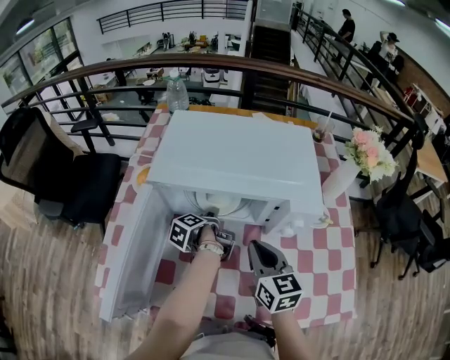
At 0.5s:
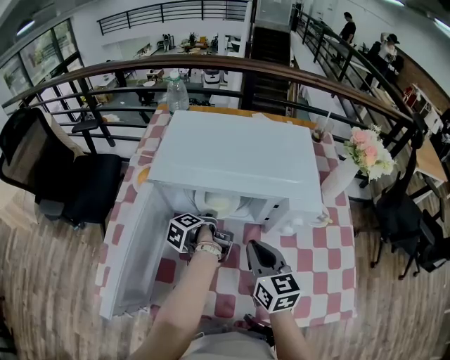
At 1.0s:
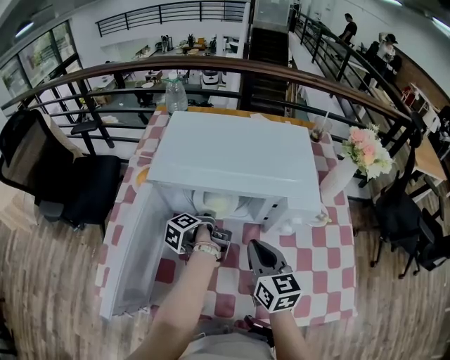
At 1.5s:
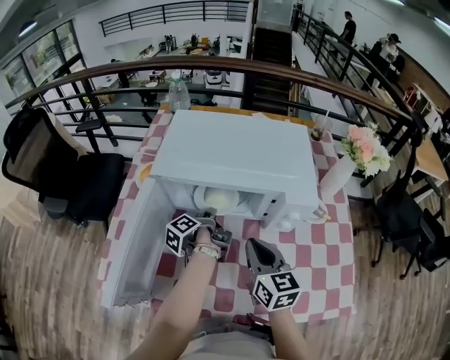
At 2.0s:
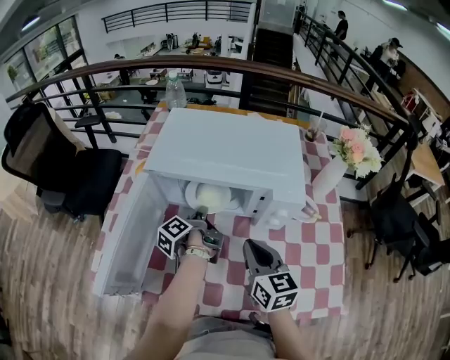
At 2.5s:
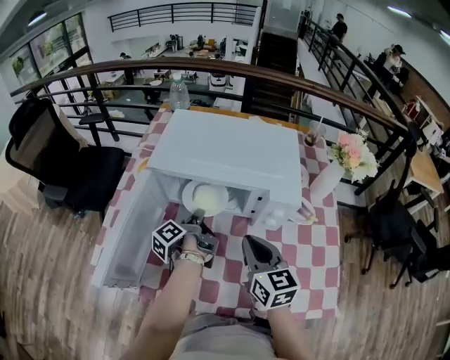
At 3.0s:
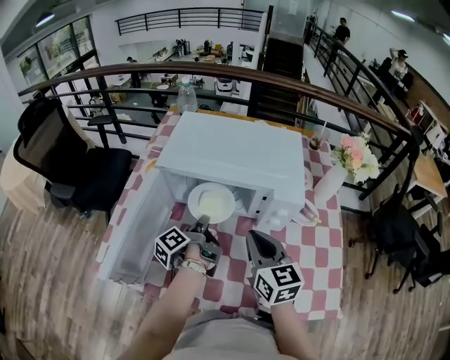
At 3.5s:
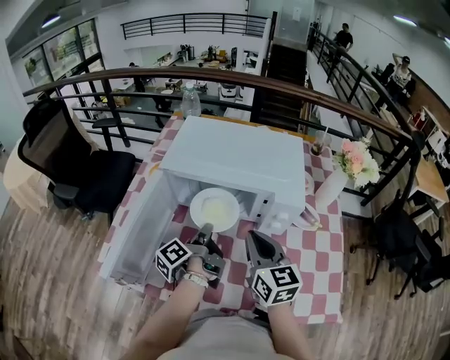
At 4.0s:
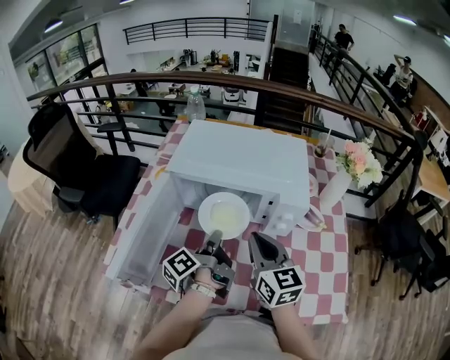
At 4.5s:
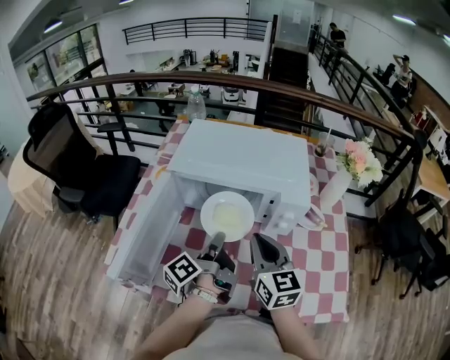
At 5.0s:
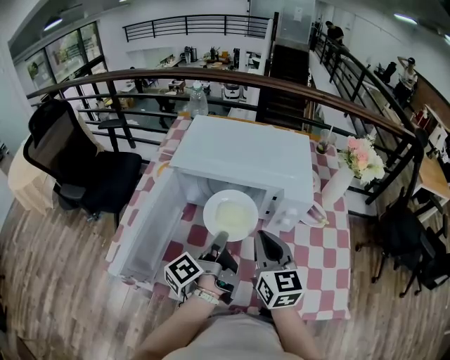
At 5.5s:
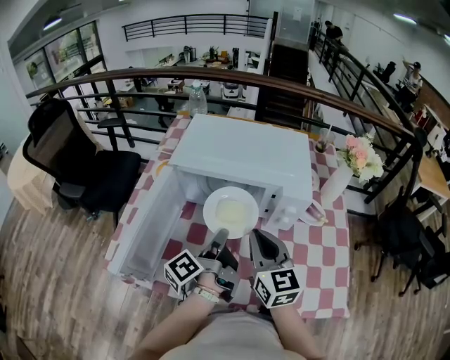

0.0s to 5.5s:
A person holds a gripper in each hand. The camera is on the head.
0.0s to 2.0s: The right gripper changes place by roughly 5 cm, while the left gripper heads upward, covering roughly 5 cm, and closes.
2.0s to 3.5s: The left gripper shifts some 10 cm backward and upward. The right gripper travels upward by some 5 cm.
3.5s to 5.5s: The left gripper shifts by approximately 5 cm.

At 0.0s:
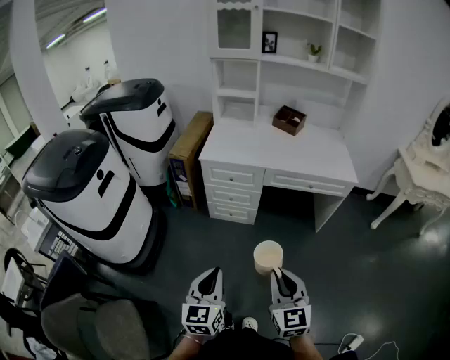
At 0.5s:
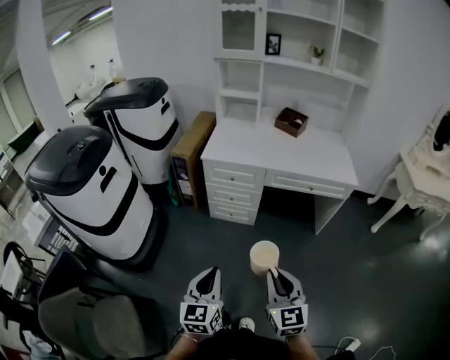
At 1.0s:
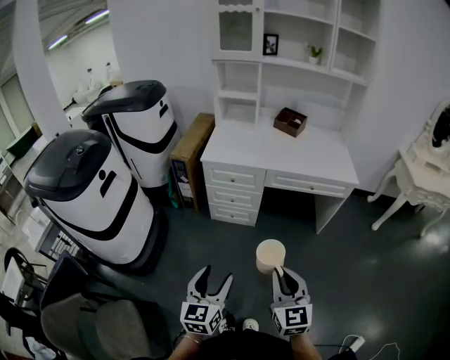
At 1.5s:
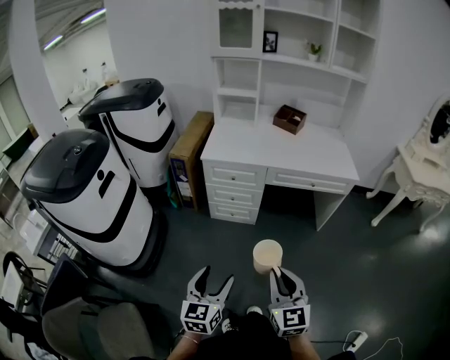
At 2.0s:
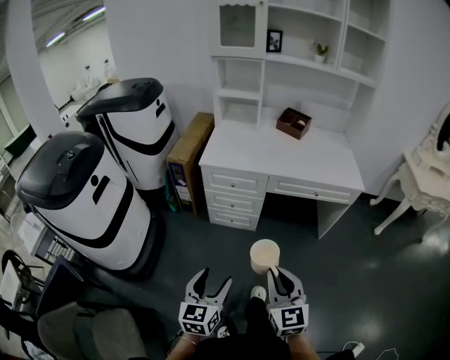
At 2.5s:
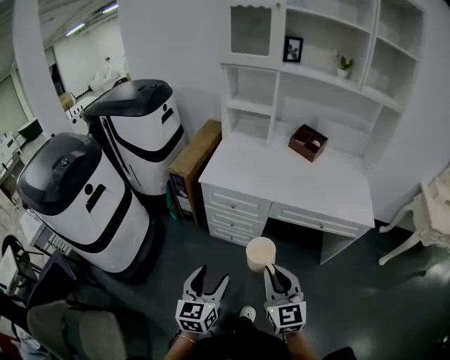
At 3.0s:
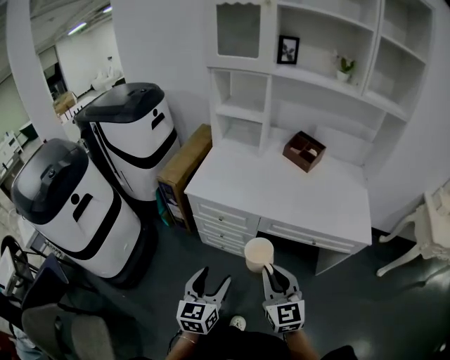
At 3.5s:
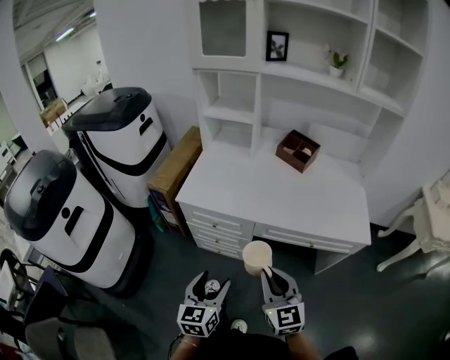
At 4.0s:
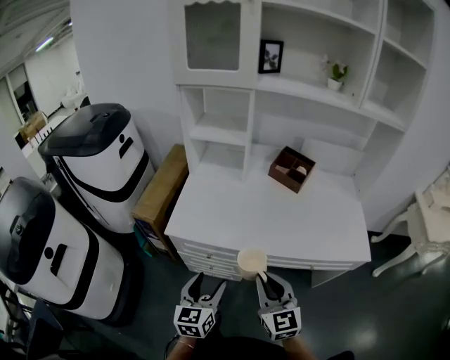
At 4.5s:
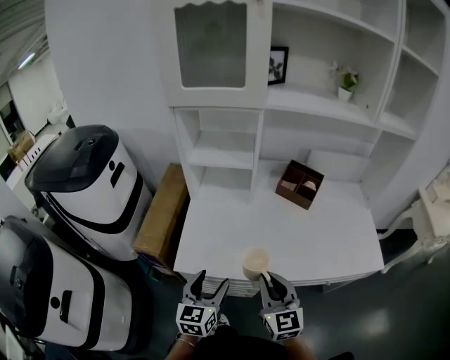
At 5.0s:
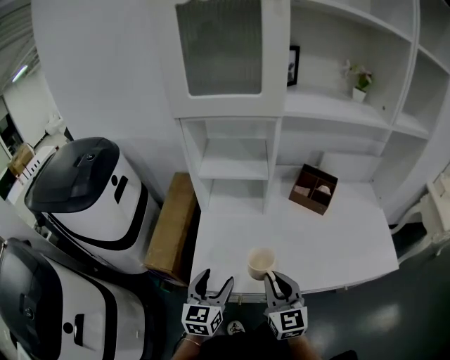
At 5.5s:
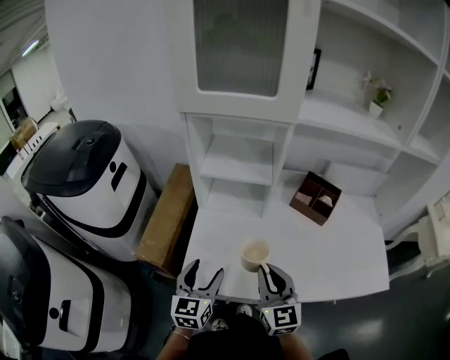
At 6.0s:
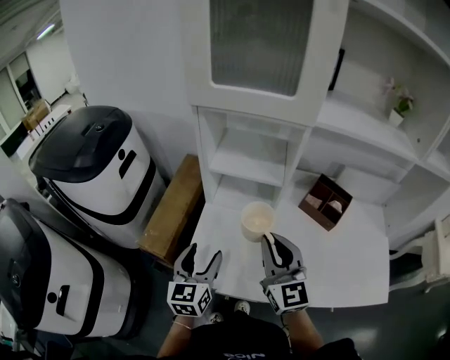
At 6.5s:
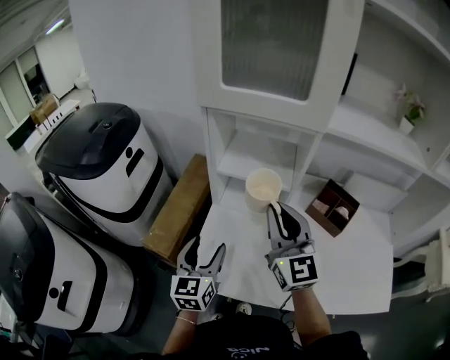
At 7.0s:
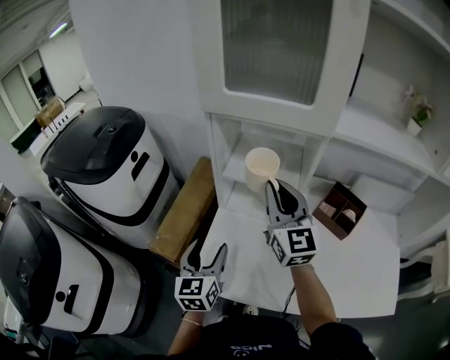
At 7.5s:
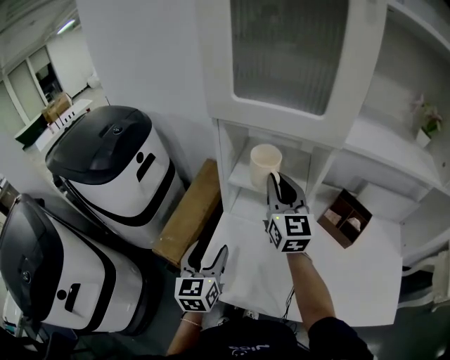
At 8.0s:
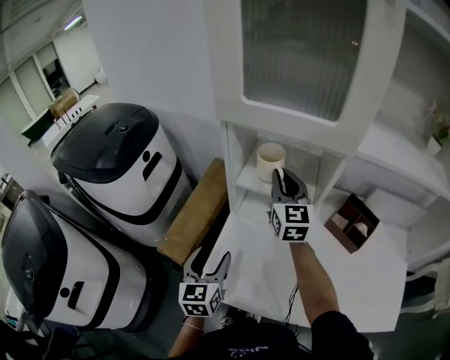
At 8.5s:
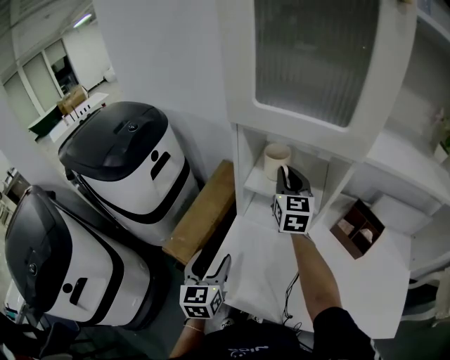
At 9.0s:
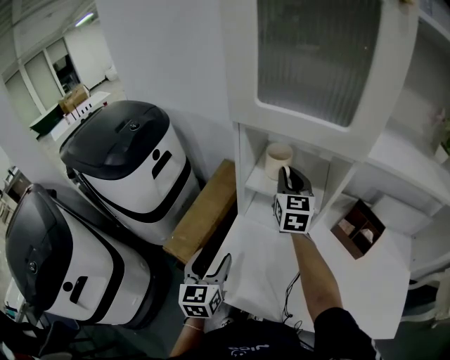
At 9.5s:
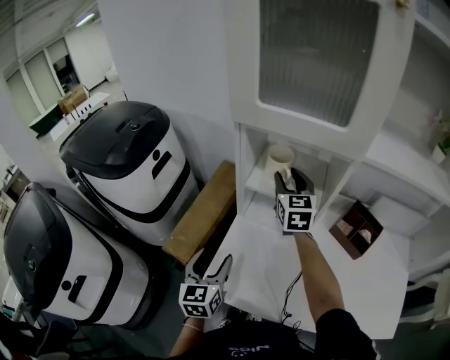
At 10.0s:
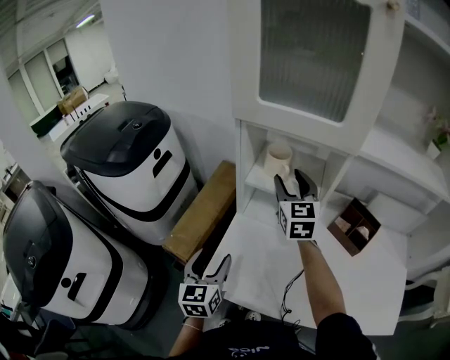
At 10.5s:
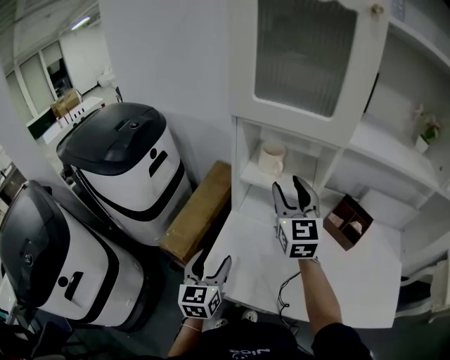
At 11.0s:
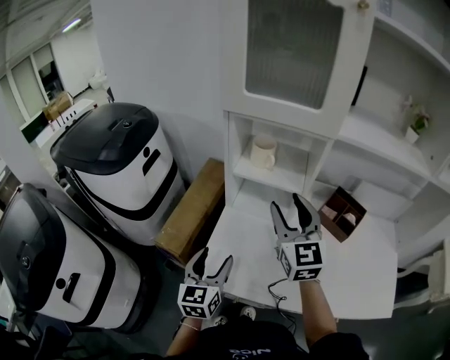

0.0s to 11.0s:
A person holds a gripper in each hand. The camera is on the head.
0.0s to 2.0s: The two grippers go roughly 5 cm forward. The left gripper opens up.
2.0s to 3.5s: Both grippers travel together forward and to the right, roughly 30 cm.
3.5s to 5.5s: Both grippers travel together forward, approximately 35 cm.
5.5s to 7.5s: The left gripper is displaced forward by about 10 cm. The right gripper shifts approximately 30 cm forward and upward.
7.5s to 9.0s: The right gripper goes roughly 10 cm forward.
9.0s to 11.0s: The right gripper heads backward, covering about 20 cm, and opens. The left gripper heads backward, covering some 5 cm.

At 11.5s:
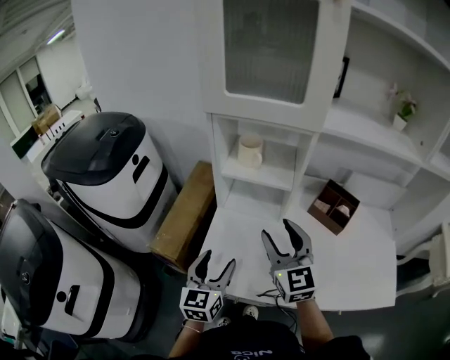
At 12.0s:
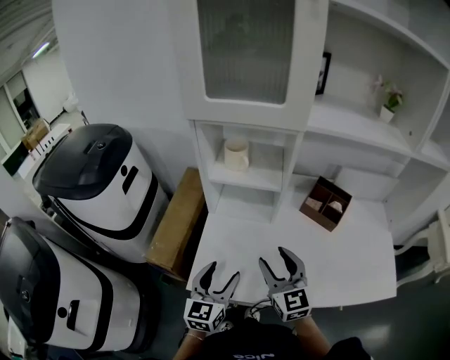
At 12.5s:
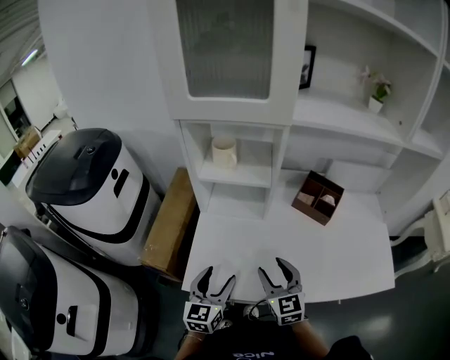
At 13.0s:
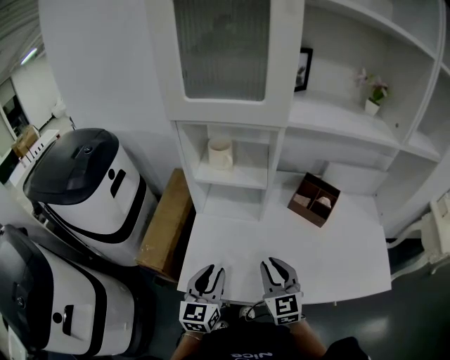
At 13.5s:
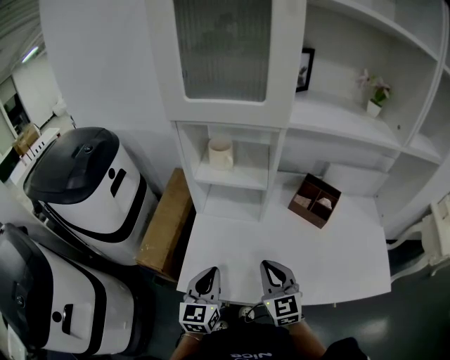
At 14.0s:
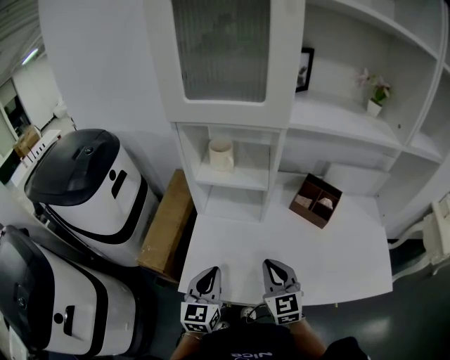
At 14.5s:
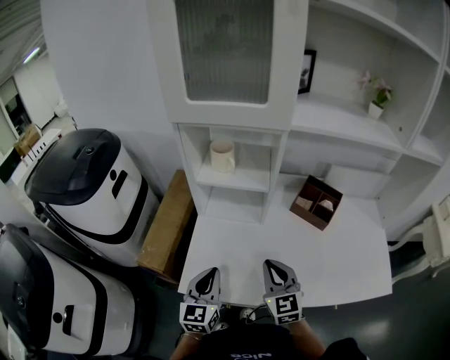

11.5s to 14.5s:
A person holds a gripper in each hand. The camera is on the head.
11.5s to 13.0s: The right gripper travels downward, backward and to the right by roughly 15 cm, and closes; the left gripper closes up.
13.0s to 14.5s: The right gripper closes its fingers, while the left gripper closes its fingers.

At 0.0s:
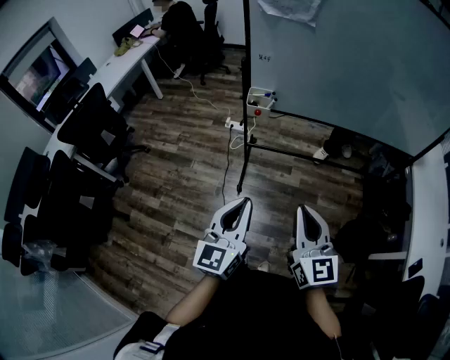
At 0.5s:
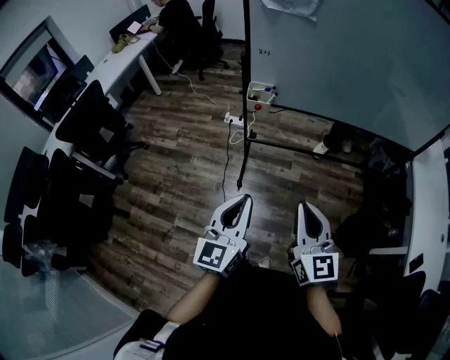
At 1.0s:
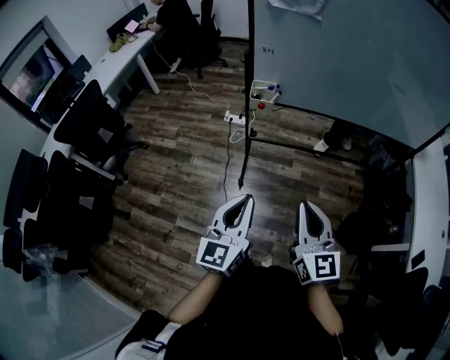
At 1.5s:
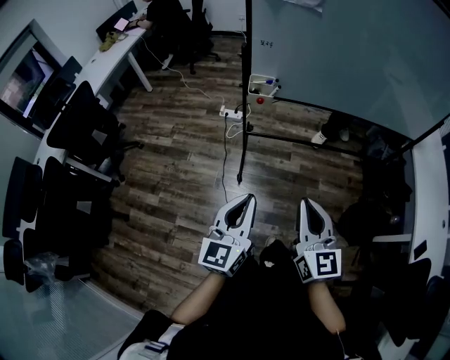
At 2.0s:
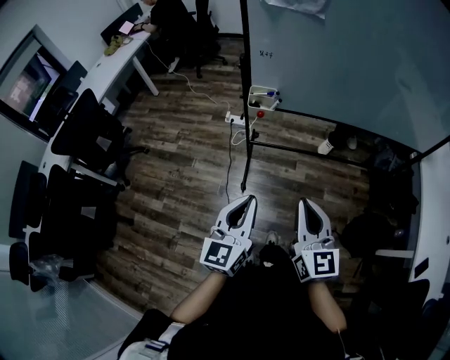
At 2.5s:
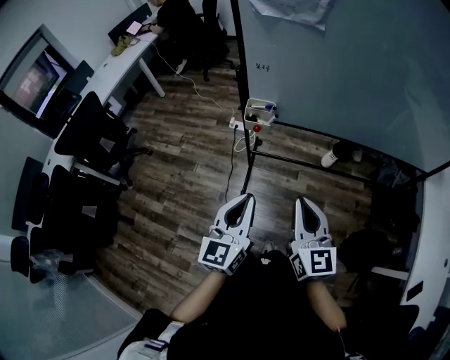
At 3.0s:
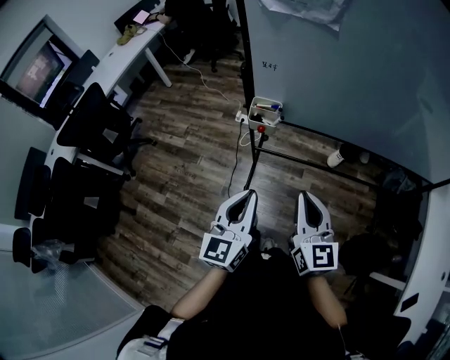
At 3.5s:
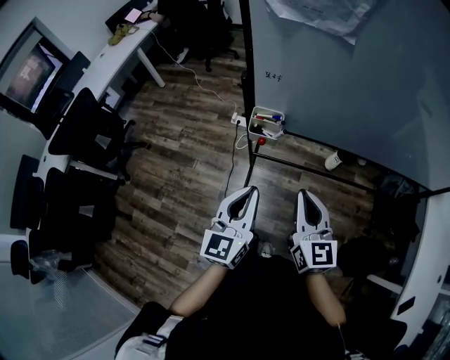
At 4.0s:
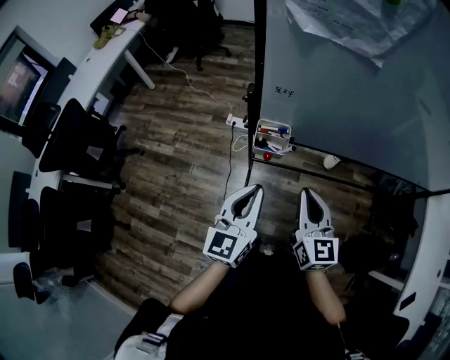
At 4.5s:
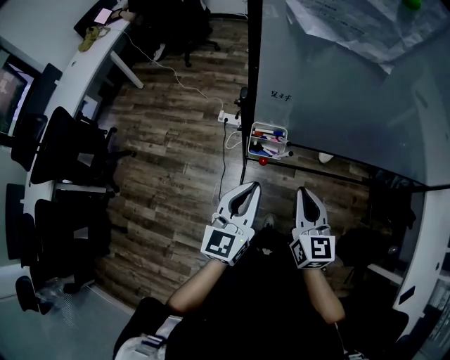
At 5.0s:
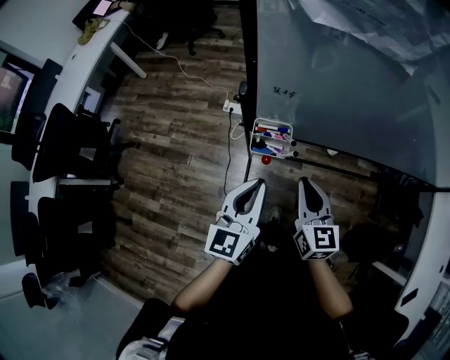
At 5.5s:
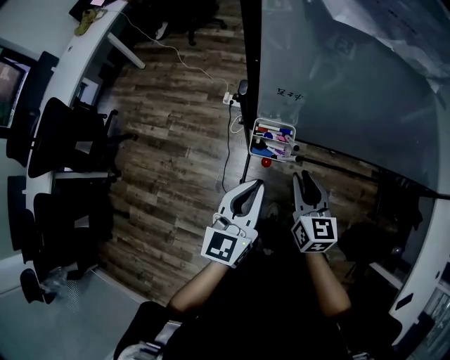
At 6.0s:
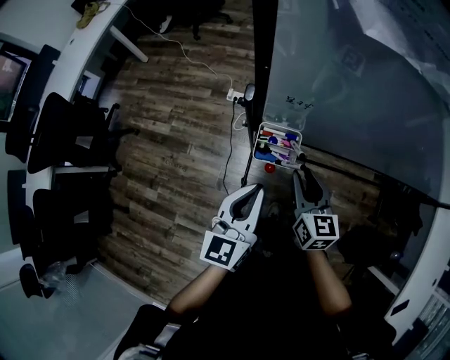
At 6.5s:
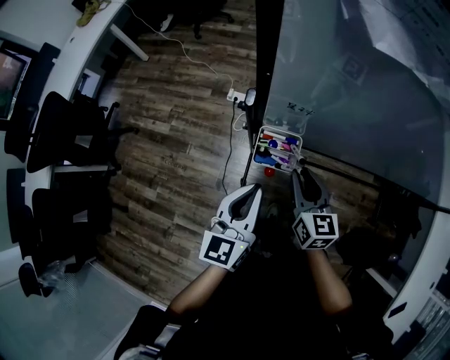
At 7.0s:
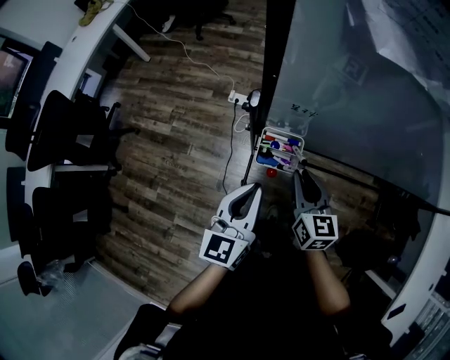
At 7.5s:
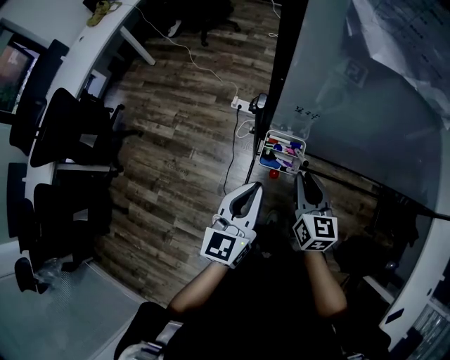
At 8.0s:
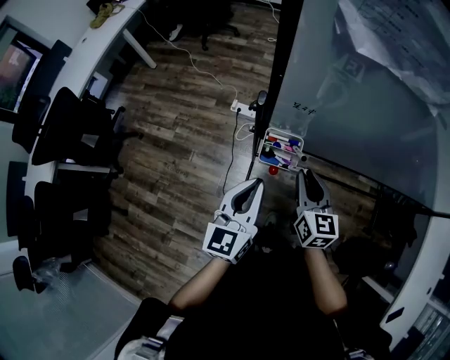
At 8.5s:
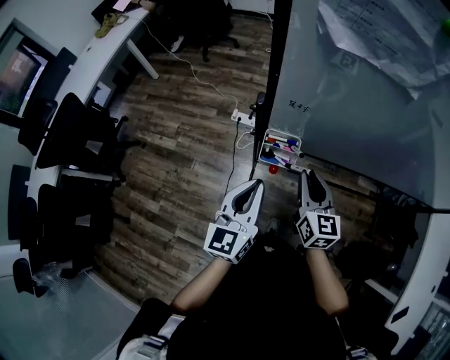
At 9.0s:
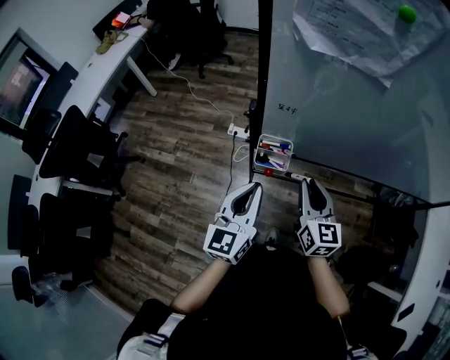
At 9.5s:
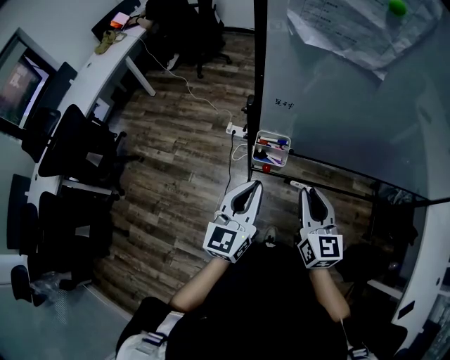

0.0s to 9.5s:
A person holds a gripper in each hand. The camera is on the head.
0.0s to 2.0s: The grippers both shift forward by about 10 cm.
2.0s to 4.0s: Both grippers move forward, roughly 25 cm.
4.0s to 5.5s: The right gripper is displaced downward and forward by some 15 cm, while the left gripper heads forward and downward, covering some 10 cm.
5.5s to 7.5s: The grippers make only small movements.
7.5s to 9.5s: The right gripper travels upward and backward by approximately 15 cm, while the left gripper moves upward, about 5 cm.
